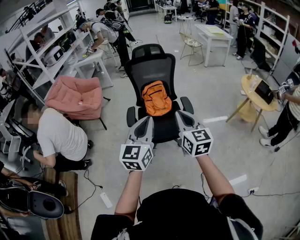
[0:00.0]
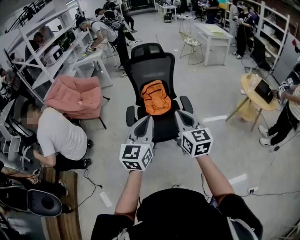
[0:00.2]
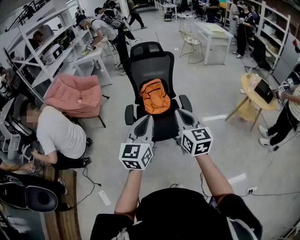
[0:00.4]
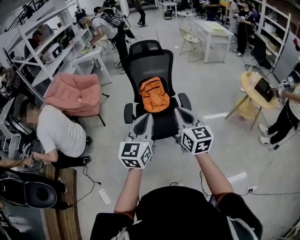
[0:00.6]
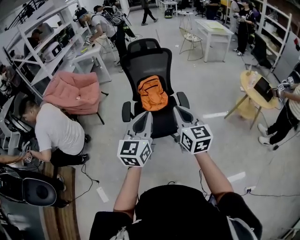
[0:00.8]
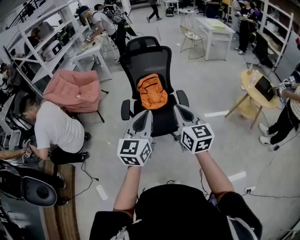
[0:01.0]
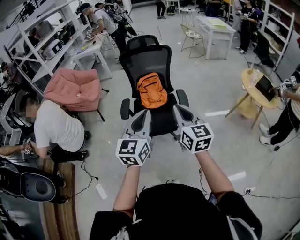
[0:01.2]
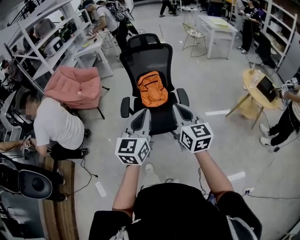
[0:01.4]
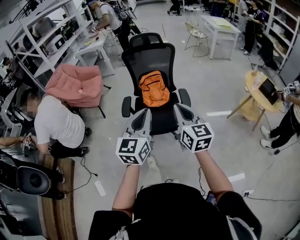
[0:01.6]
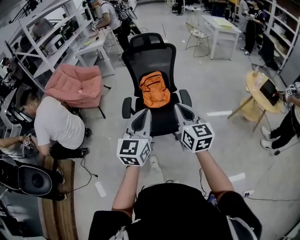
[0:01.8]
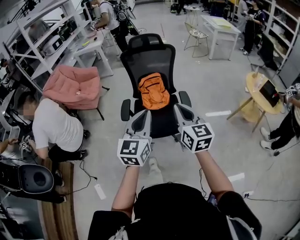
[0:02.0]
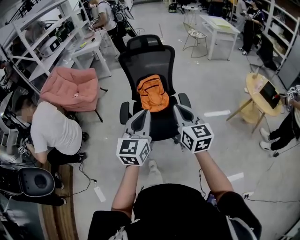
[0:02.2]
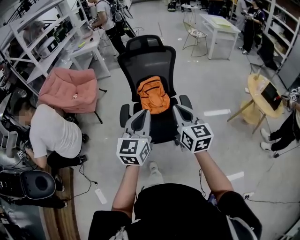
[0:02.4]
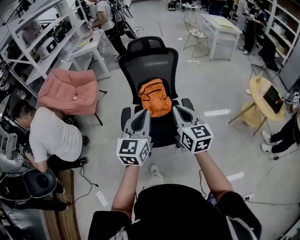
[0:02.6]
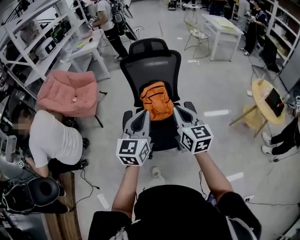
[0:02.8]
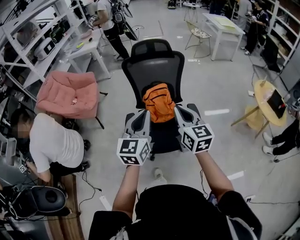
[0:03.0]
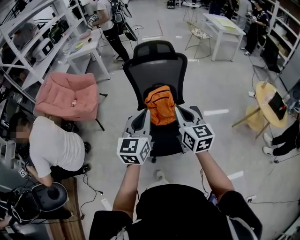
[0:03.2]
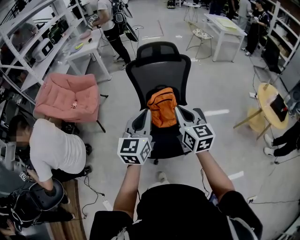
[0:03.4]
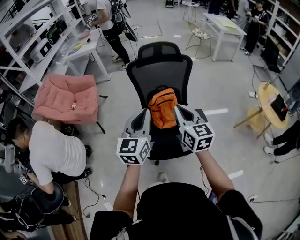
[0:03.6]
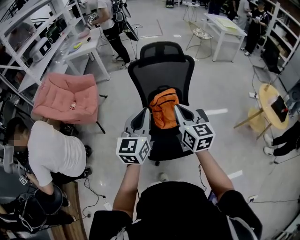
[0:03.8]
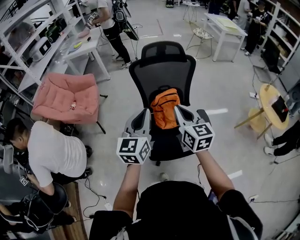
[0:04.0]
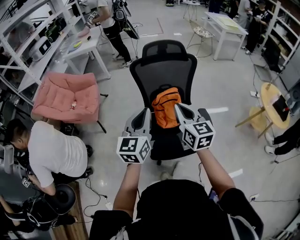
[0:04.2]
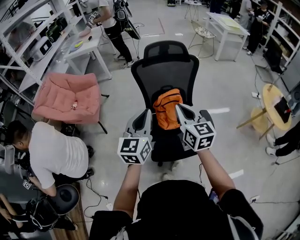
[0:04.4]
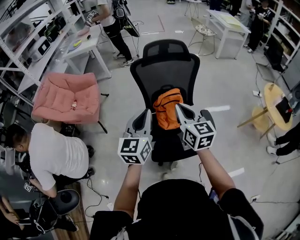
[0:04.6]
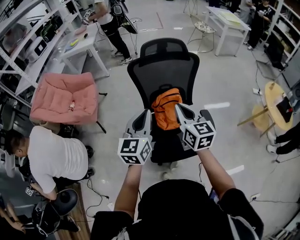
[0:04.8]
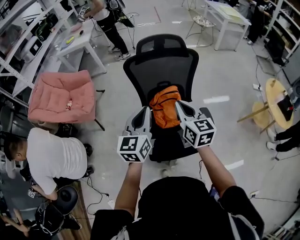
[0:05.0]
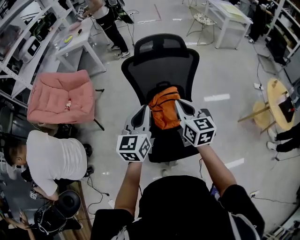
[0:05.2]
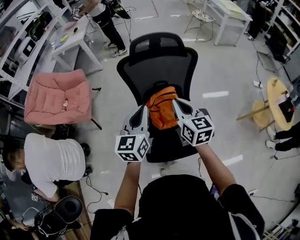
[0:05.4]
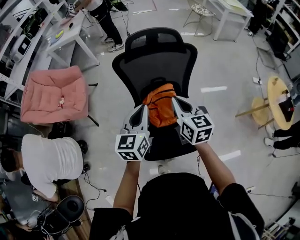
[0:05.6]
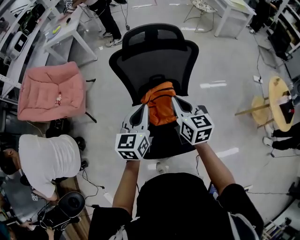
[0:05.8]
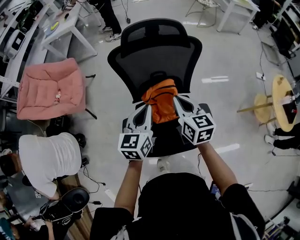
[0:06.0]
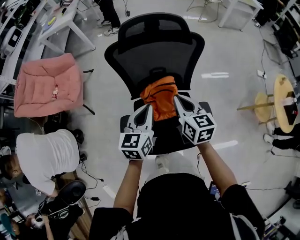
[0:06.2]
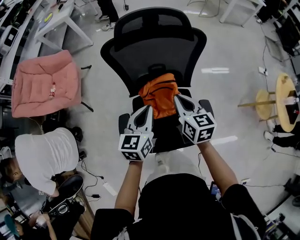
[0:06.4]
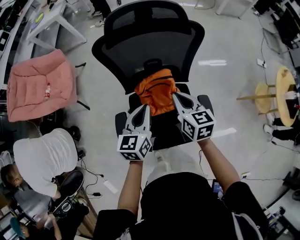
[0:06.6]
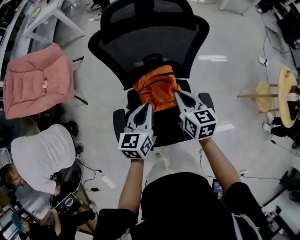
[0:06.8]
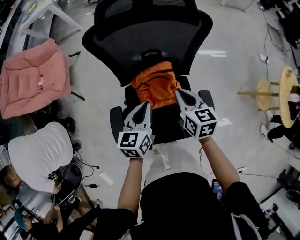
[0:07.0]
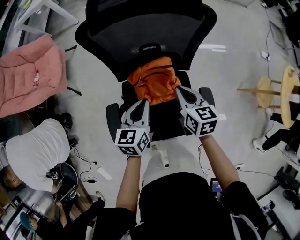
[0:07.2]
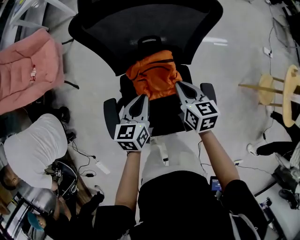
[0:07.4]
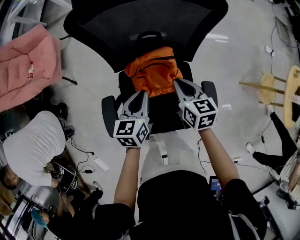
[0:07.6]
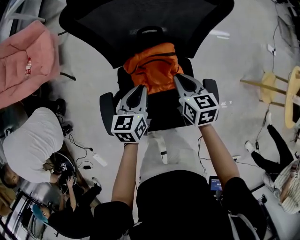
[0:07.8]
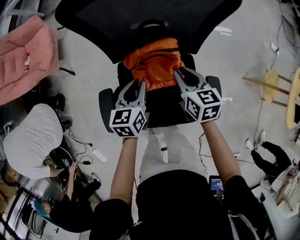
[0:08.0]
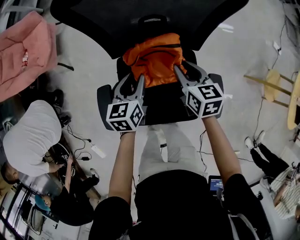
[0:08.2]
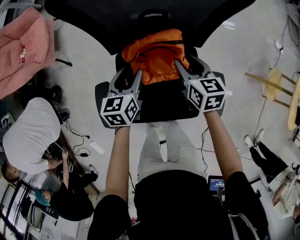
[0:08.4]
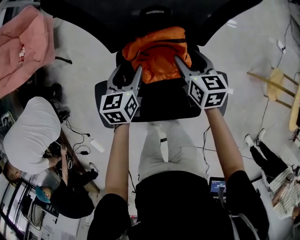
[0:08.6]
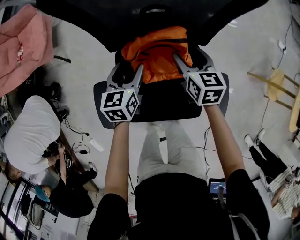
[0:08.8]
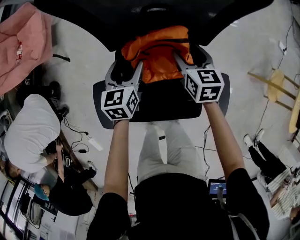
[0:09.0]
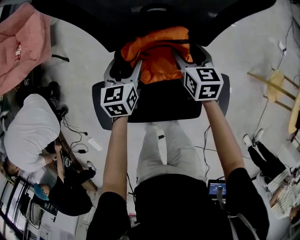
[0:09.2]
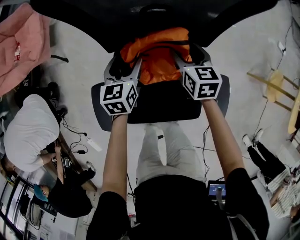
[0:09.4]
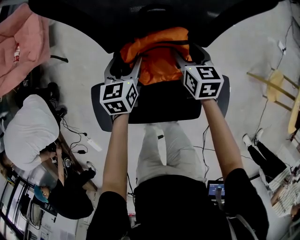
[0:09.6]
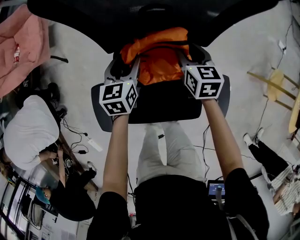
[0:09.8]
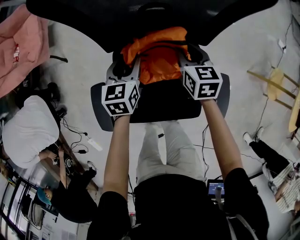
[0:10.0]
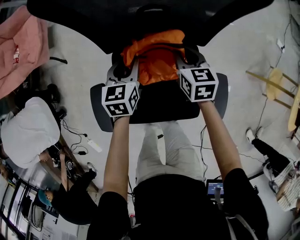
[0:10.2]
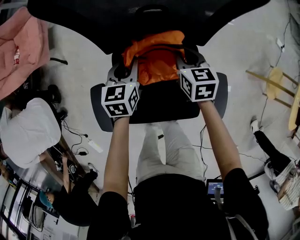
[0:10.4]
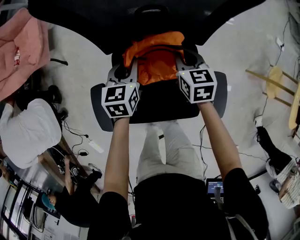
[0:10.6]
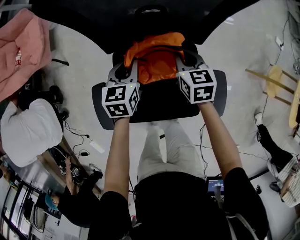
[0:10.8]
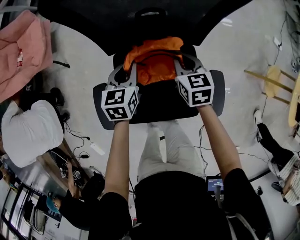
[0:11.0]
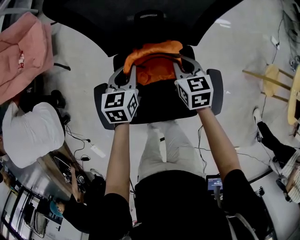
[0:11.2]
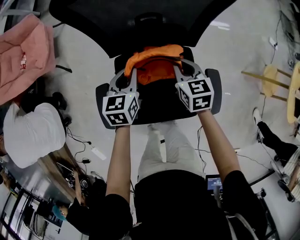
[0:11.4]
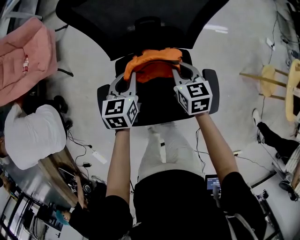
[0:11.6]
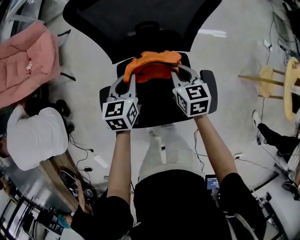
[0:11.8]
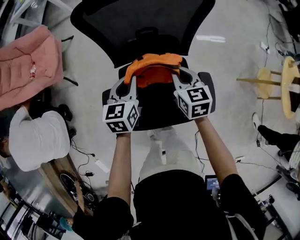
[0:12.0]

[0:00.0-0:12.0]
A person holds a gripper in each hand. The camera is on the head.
0:00.0 to 0:01.6: The grippers both shift to the right by roughly 5 cm.
0:01.6 to 0:03.0: The grippers both shift forward by some 25 cm.
0:03.0 to 0:04.4: The left gripper is displaced to the left and forward by about 15 cm; the right gripper heads forward and to the left, covering about 15 cm.
0:04.4 to 0:06.0: The right gripper travels forward and downward by some 25 cm, while the left gripper travels forward, downward and to the right by some 25 cm.
0:06.0 to 0:07.6: The two grippers go some 25 cm downward. The left gripper turns by roughly 20 degrees.
0:07.6 to 0:09.0: The right gripper goes roughly 15 cm downward and forward, and opens; the left gripper shifts roughly 15 cm downward, forward and to the left, and opens its fingers.
0:09.0 to 0:10.4: The left gripper closes up. Meanwhile the right gripper closes up.
0:10.4 to 0:12.0: The grippers both shift upward and backward by roughly 20 cm.

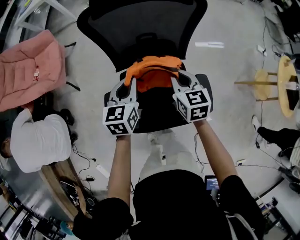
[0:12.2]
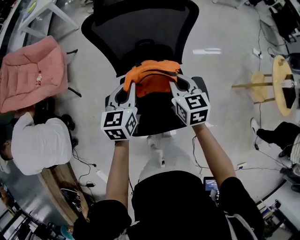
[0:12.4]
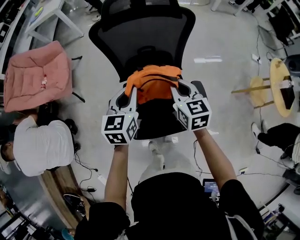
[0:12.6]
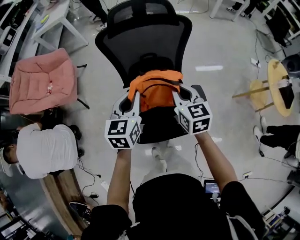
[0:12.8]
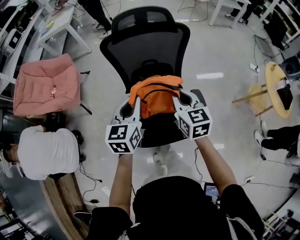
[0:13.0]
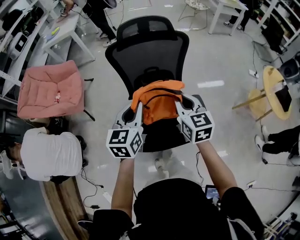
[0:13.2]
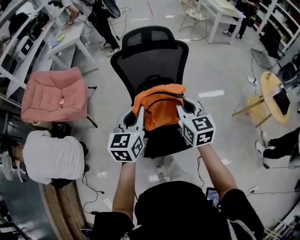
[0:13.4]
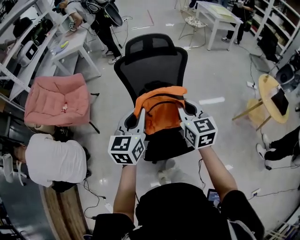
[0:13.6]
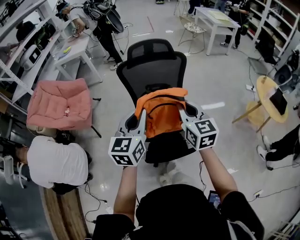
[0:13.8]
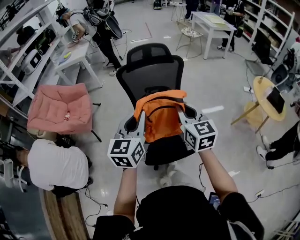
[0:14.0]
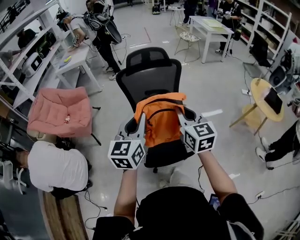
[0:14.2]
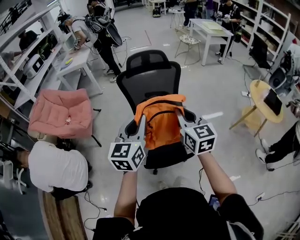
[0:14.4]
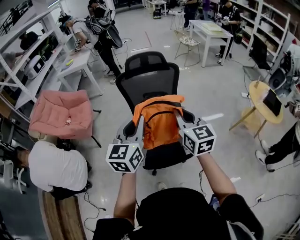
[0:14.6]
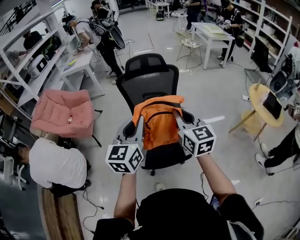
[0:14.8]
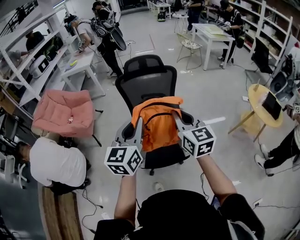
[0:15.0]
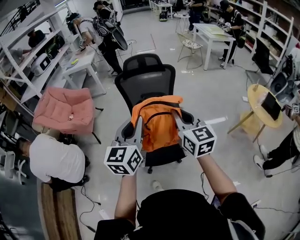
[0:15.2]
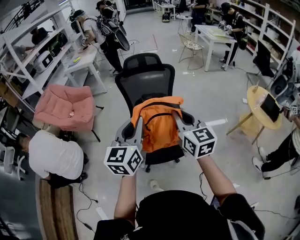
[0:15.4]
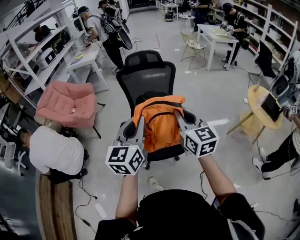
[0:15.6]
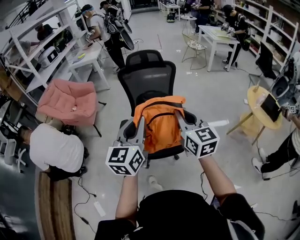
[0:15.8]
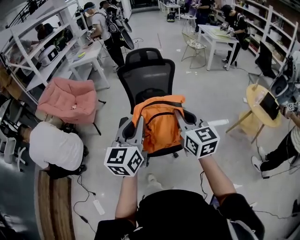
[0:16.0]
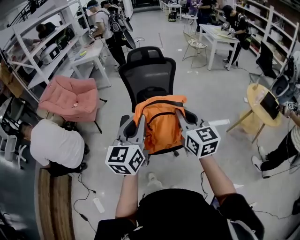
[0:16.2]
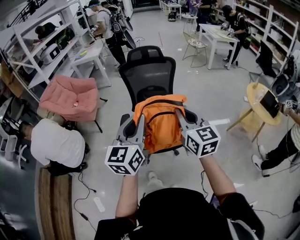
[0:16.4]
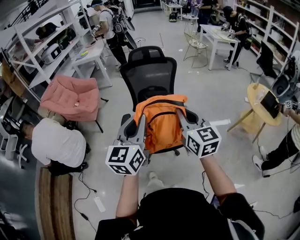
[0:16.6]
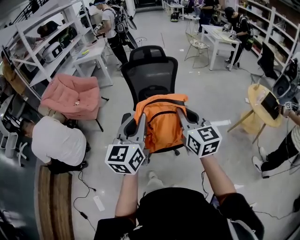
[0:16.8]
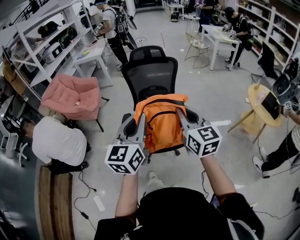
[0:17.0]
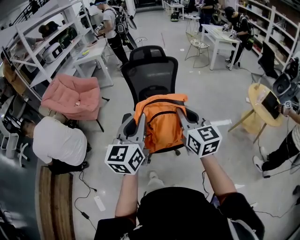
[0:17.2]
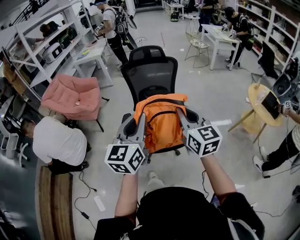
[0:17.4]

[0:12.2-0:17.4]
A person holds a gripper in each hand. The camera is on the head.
0:12.2 to 0:14.0: The two grippers go about 35 cm upward and backward. The right gripper rotates roughly 30 degrees. Meanwhile the left gripper swivels roughly 30 degrees.
0:14.0 to 0:15.6: The right gripper goes about 20 cm backward, to the right and upward; the left gripper goes about 20 cm backward and to the right.
0:15.6 to 0:17.4: The grippers both shift backward by roughly 10 cm.

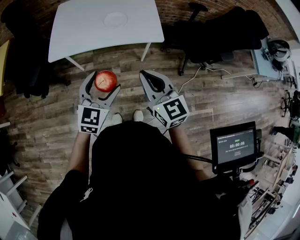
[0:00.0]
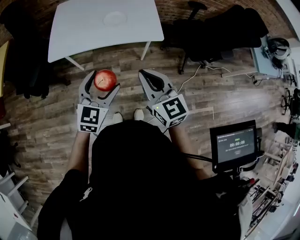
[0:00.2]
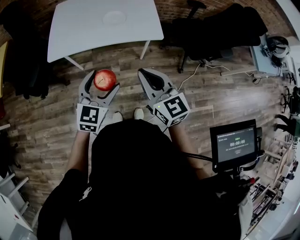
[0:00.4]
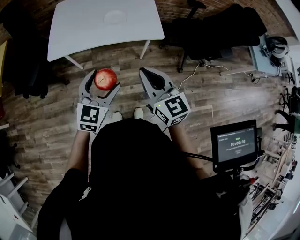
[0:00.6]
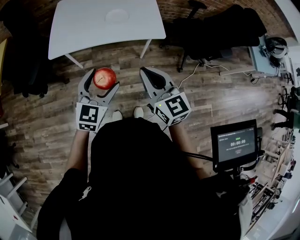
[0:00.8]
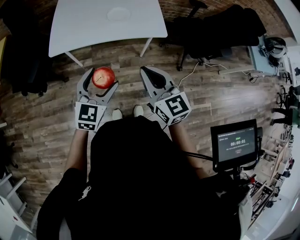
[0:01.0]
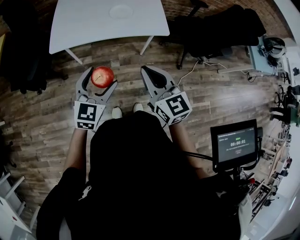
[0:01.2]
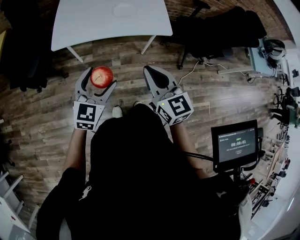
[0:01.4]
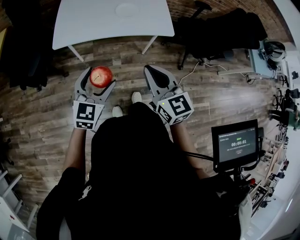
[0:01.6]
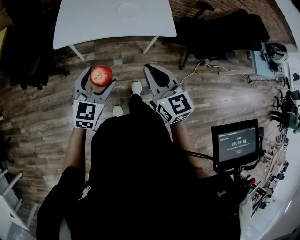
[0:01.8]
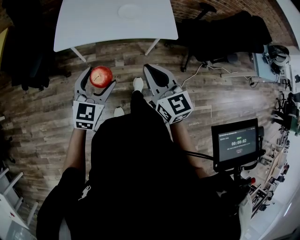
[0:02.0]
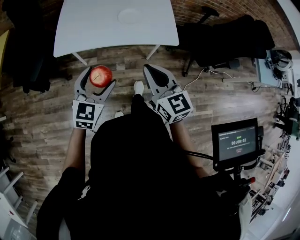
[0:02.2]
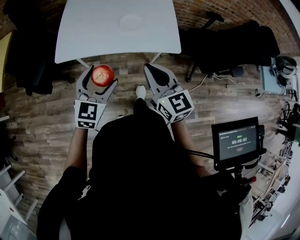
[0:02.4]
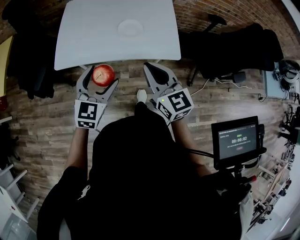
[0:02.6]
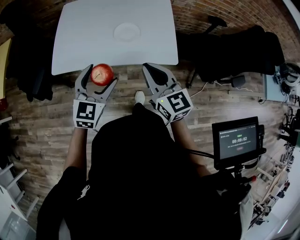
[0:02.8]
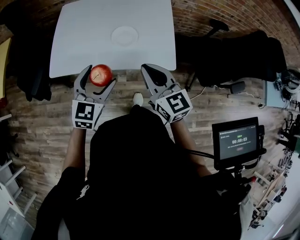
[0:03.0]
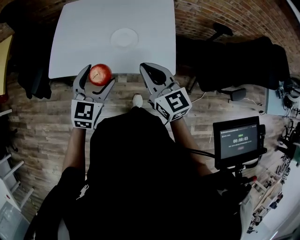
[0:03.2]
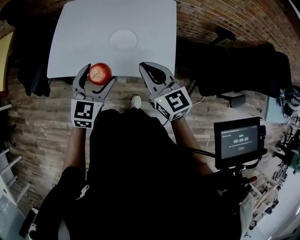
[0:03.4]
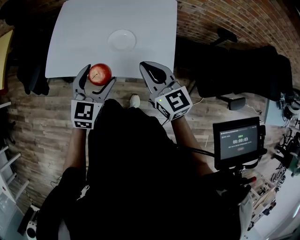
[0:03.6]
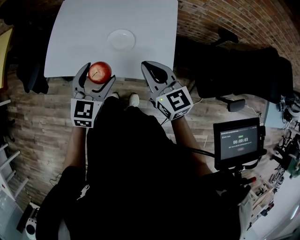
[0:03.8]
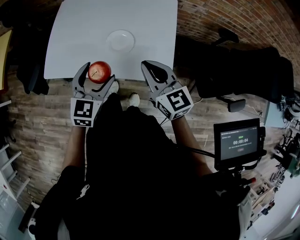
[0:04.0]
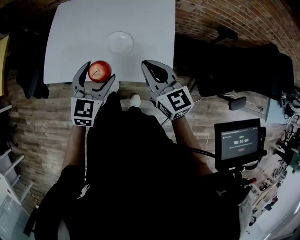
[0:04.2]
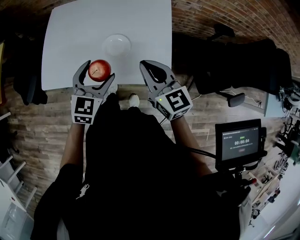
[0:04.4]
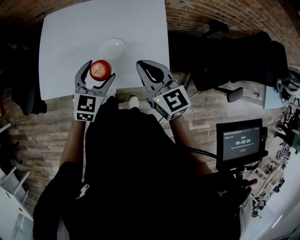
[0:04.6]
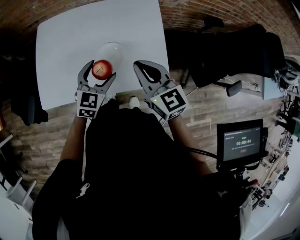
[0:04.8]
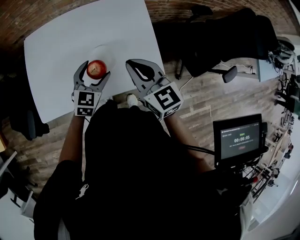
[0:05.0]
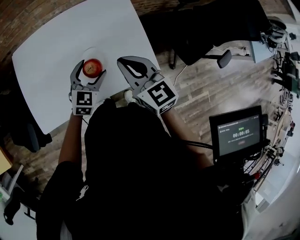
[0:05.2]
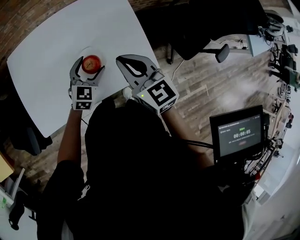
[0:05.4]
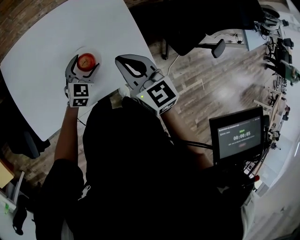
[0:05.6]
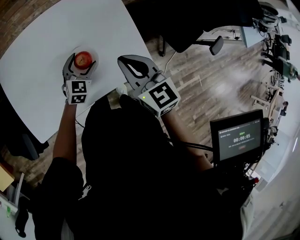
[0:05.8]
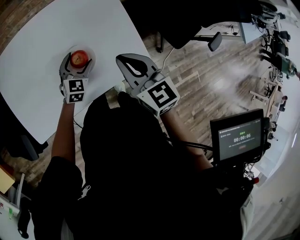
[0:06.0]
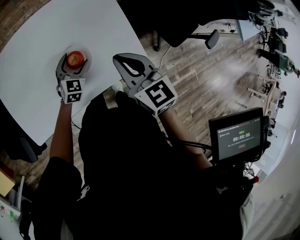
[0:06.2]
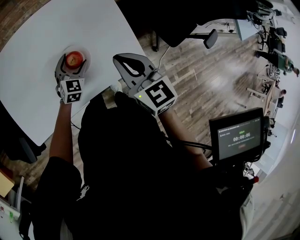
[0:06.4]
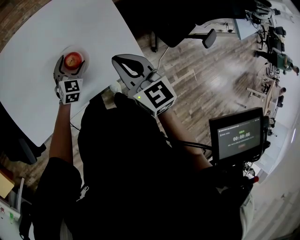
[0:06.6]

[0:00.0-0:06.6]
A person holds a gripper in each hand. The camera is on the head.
0:00.0 to 0:01.6: The two grippers go roughly 10 cm to the left.
0:01.6 to 0:03.2: The left gripper moves forward and to the right, approximately 25 cm. Meanwhile the right gripper moves forward, about 25 cm.
0:03.2 to 0:05.0: The left gripper heads forward and downward, covering roughly 20 cm, while the right gripper goes approximately 15 cm forward.
0:05.0 to 0:06.6: The right gripper moves some 5 cm, while the left gripper goes some 15 cm downward and forward.
